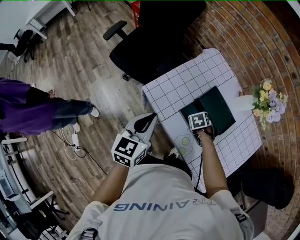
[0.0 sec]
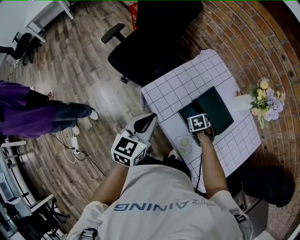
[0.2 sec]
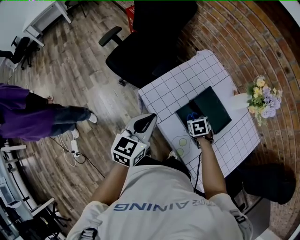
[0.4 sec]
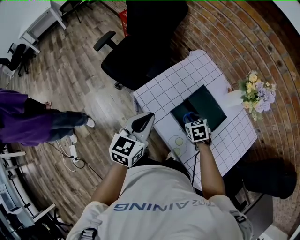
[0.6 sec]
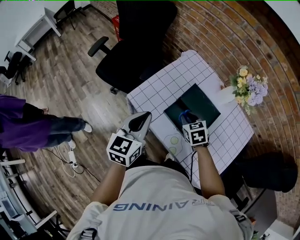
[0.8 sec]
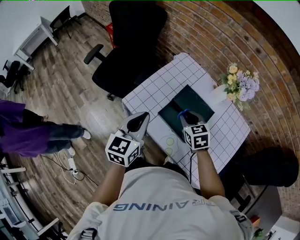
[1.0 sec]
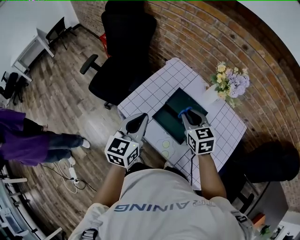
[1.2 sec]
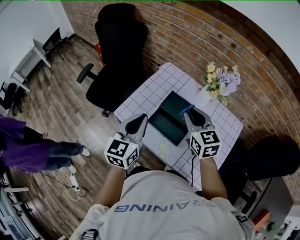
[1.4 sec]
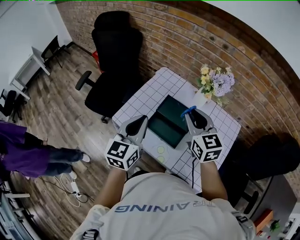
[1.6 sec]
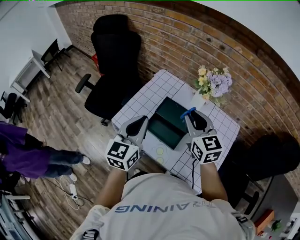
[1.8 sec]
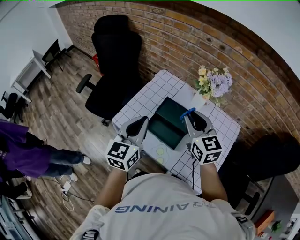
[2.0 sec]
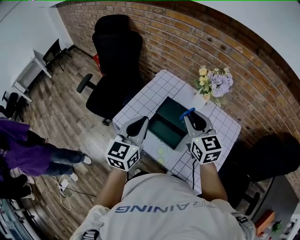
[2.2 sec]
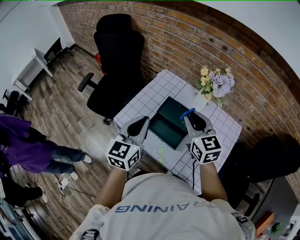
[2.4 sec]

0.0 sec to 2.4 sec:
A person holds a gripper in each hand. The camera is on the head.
0.0 sec to 1.2 sec: The left gripper moves about 10 cm, while the right gripper goes about 25 cm upward, and angles its fingers upward, by some 50 degrees.
1.2 sec to 2.4 sec: The left gripper moves to the right, approximately 5 cm. The right gripper travels upward and to the right by roughly 10 cm.

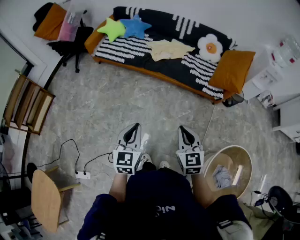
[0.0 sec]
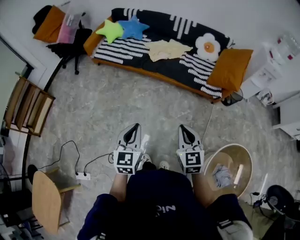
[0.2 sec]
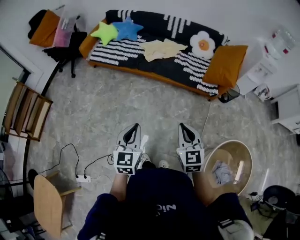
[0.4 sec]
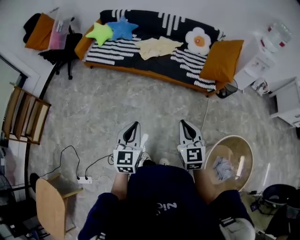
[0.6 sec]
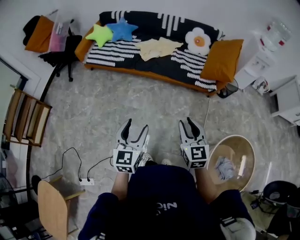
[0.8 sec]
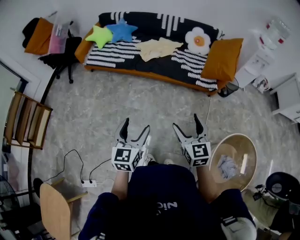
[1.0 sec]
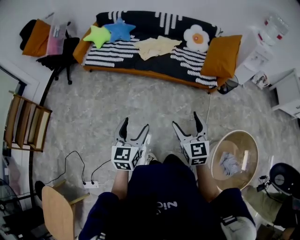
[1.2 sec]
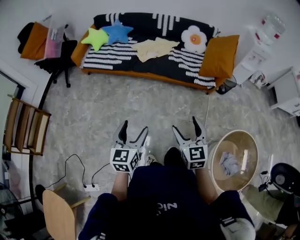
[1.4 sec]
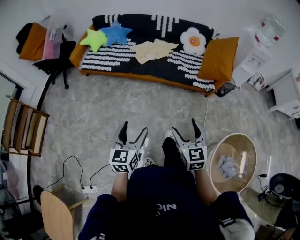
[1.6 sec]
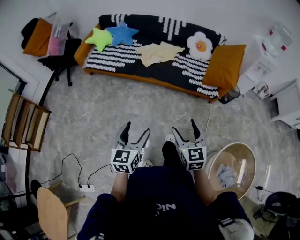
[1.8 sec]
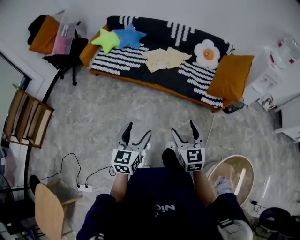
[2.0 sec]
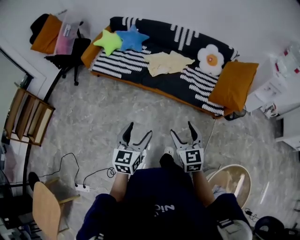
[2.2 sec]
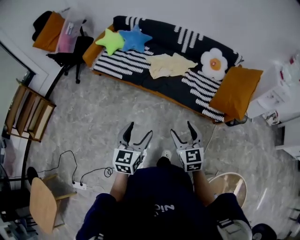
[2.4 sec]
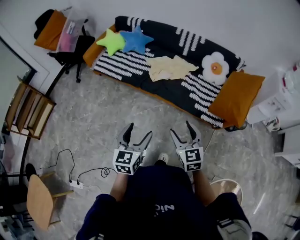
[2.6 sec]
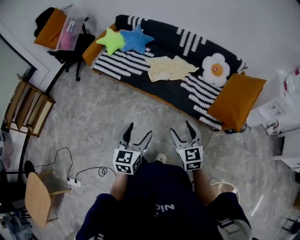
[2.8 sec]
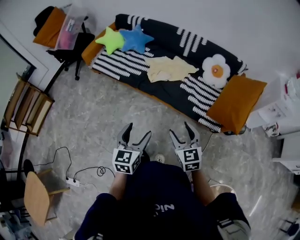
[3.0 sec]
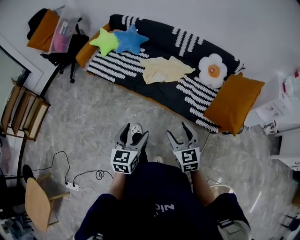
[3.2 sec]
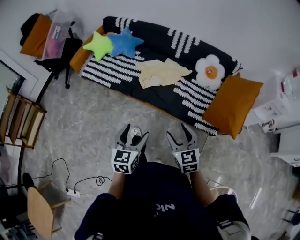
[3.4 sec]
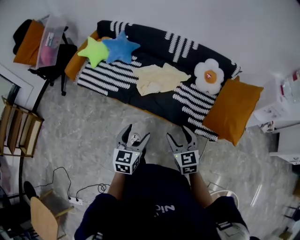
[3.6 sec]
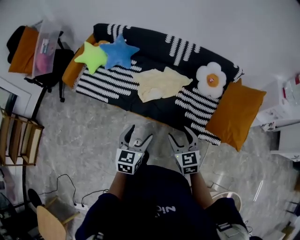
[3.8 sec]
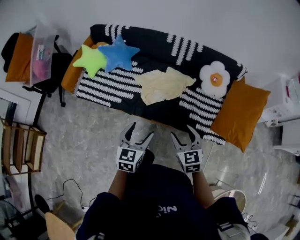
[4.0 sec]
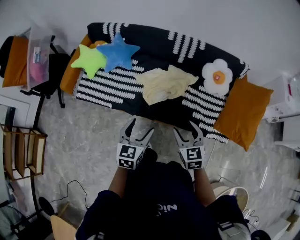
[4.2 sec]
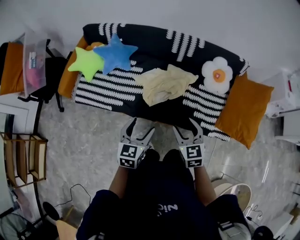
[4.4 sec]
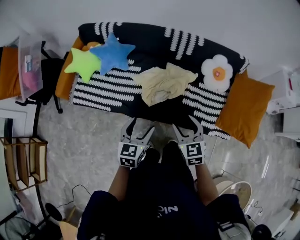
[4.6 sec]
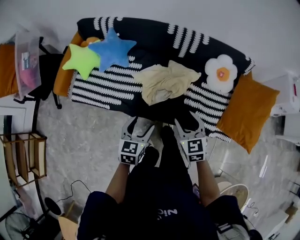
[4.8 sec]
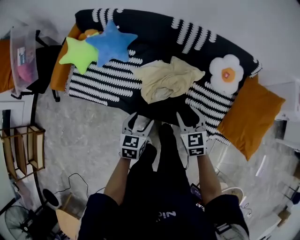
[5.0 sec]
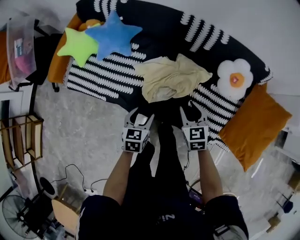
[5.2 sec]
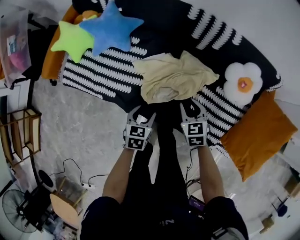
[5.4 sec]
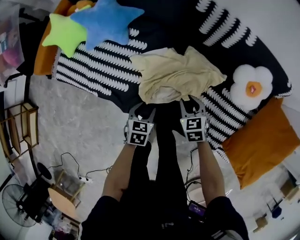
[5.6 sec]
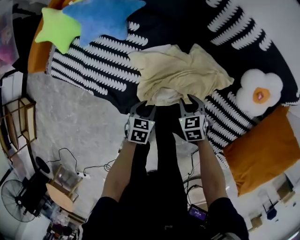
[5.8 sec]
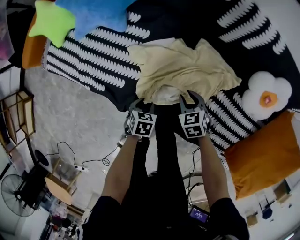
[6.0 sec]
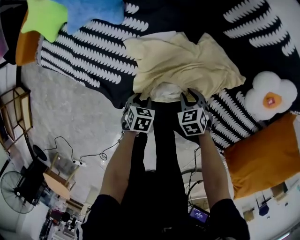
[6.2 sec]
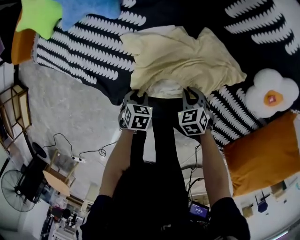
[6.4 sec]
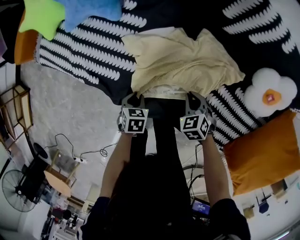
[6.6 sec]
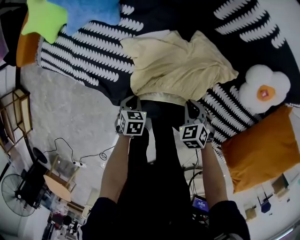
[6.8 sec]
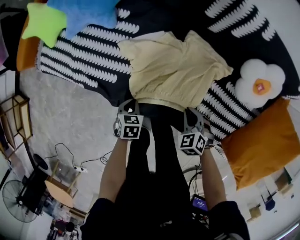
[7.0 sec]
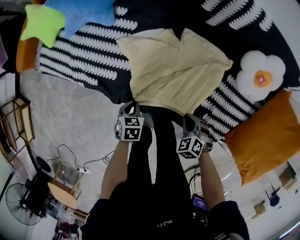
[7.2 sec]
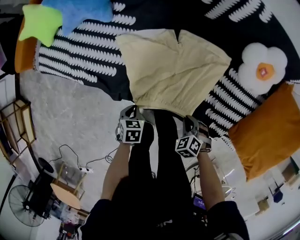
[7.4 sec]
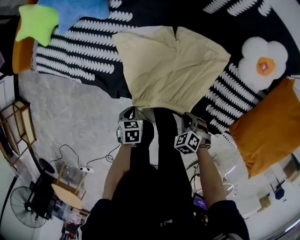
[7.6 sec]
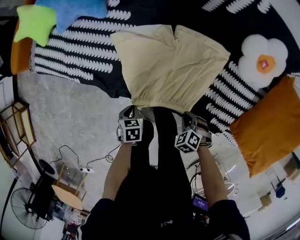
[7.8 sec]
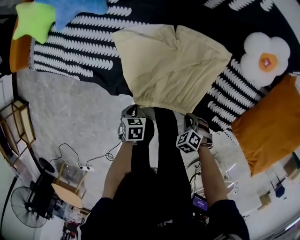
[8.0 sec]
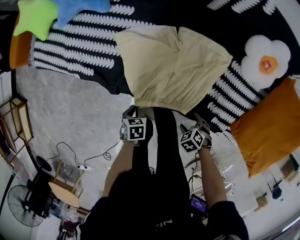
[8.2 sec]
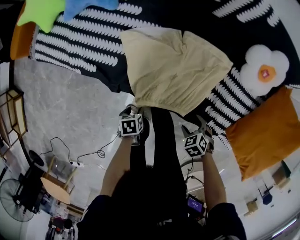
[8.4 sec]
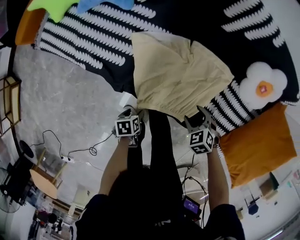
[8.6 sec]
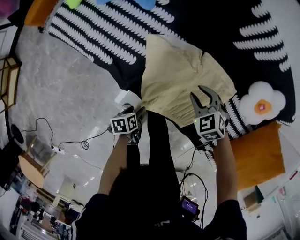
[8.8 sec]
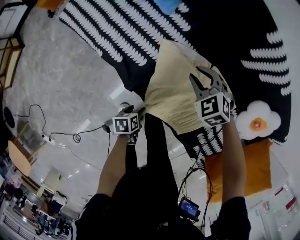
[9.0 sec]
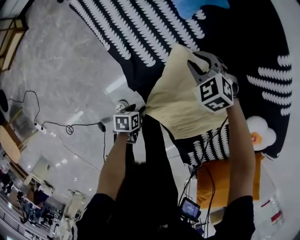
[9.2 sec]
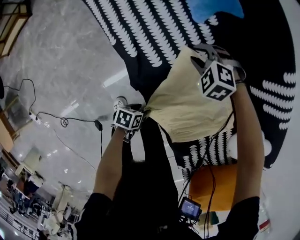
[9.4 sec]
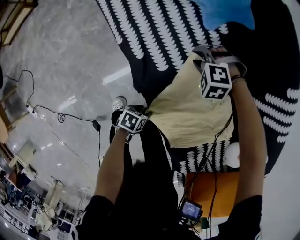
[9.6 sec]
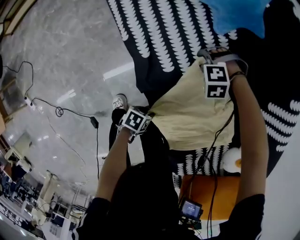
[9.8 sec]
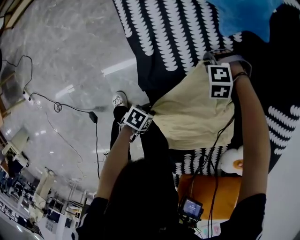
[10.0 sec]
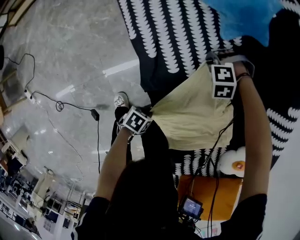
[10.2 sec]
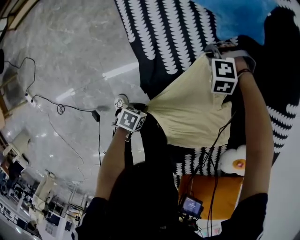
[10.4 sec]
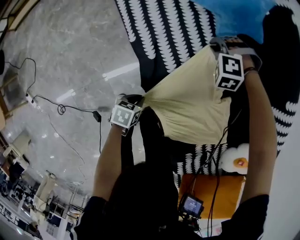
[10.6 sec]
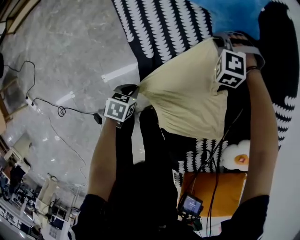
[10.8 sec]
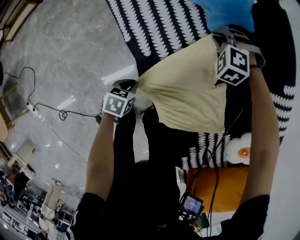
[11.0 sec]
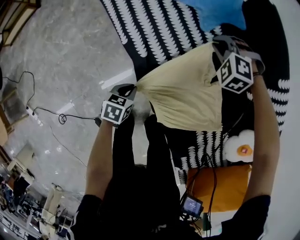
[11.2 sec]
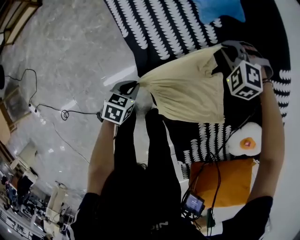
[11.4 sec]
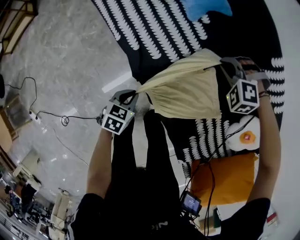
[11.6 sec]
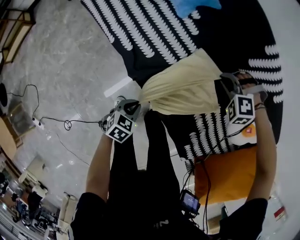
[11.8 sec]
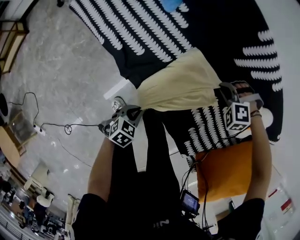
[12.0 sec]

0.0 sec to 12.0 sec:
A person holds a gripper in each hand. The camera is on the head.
0.0 sec to 1.6 sec: The right gripper opens its fingers, while the left gripper opens.
1.6 sec to 3.0 sec: The left gripper moves forward and to the right, approximately 25 cm, while the right gripper goes some 30 cm forward, and changes its angle by some 20 degrees.
3.0 sec to 4.4 sec: The two grippers go about 35 cm forward.
4.4 sec to 6.0 sec: The grippers both shift downward and forward by about 50 cm. The left gripper points its fingers approximately 40 degrees further downward, and closes. The right gripper changes its angle by roughly 40 degrees, and closes up.
6.0 sec to 7.6 sec: The right gripper goes up and down, approximately 10 cm each way, reversing 2 times, and rotates some 20 degrees, while the left gripper changes place by approximately 15 cm, and closes.
7.6 sec to 9.0 sec: The right gripper changes place by about 35 cm, swivels roughly 40 degrees, and opens, then closes again, while the left gripper rotates around the line of its fingers by some 40 degrees, counterclockwise from behind, and opens up.
9.0 sec to 10.4 sec: The right gripper changes place by some 20 cm, and rotates around the line of its fingers by some 70 degrees, counterclockwise from behind. Meanwhile the left gripper closes its fingers.
10.4 sec to 12.0 sec: The right gripper changes place by about 35 cm, and changes its angle by approximately 20 degrees; the left gripper travels upward by roughly 15 cm, and rotates around the line of its fingers by roughly 50 degrees, clockwise from behind.

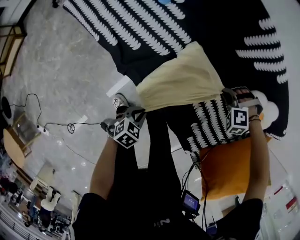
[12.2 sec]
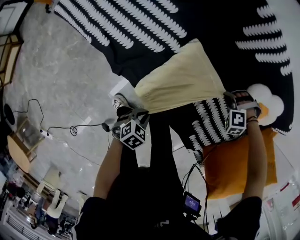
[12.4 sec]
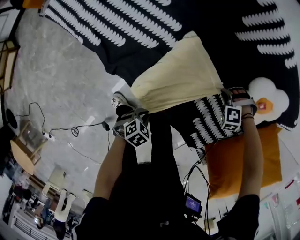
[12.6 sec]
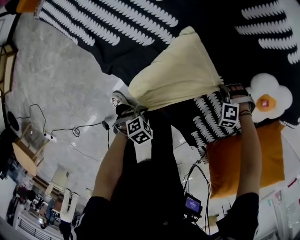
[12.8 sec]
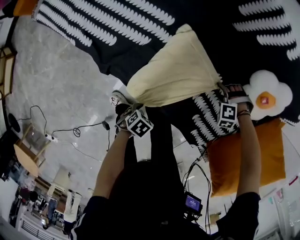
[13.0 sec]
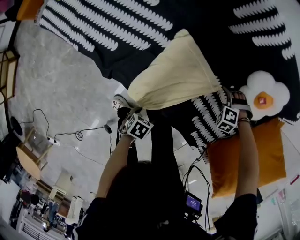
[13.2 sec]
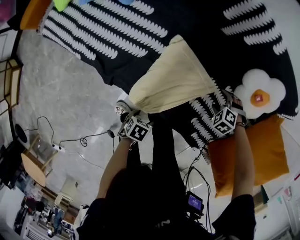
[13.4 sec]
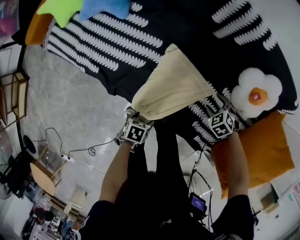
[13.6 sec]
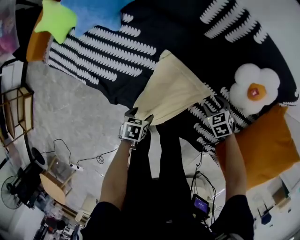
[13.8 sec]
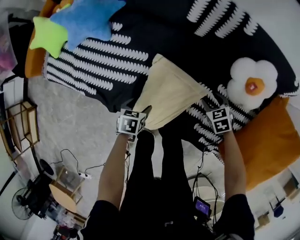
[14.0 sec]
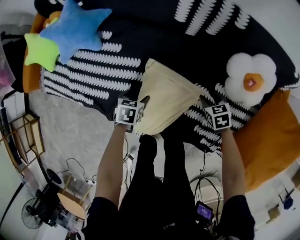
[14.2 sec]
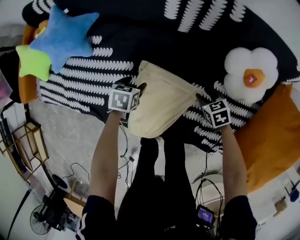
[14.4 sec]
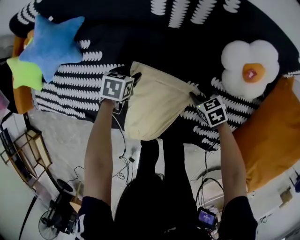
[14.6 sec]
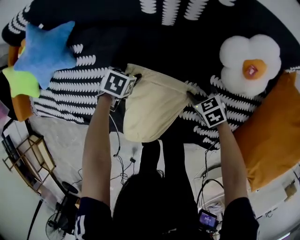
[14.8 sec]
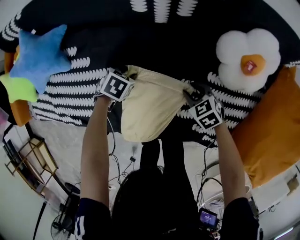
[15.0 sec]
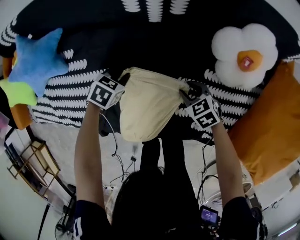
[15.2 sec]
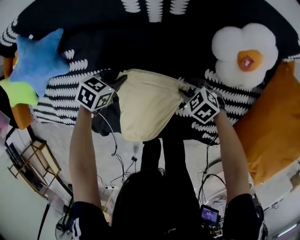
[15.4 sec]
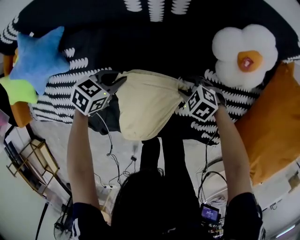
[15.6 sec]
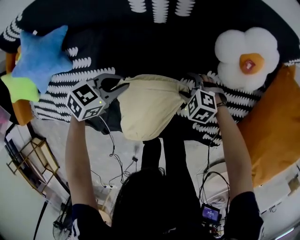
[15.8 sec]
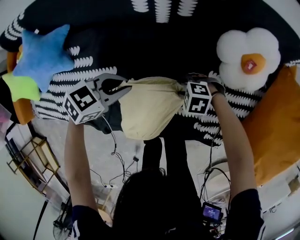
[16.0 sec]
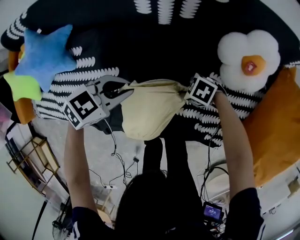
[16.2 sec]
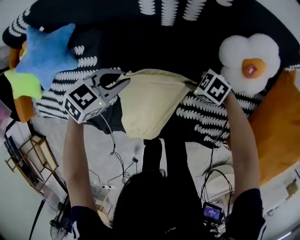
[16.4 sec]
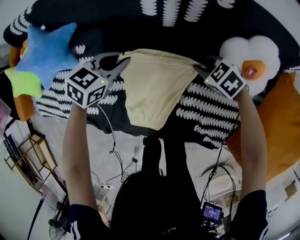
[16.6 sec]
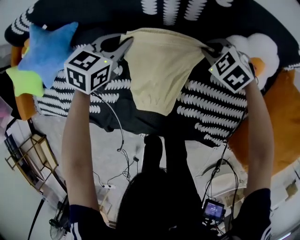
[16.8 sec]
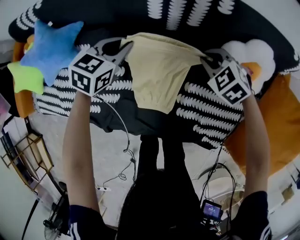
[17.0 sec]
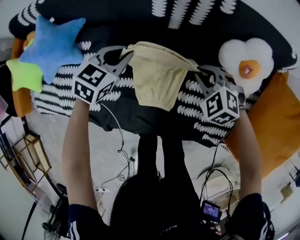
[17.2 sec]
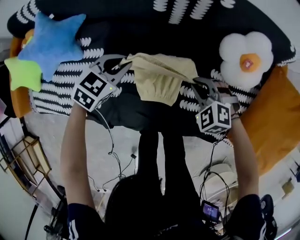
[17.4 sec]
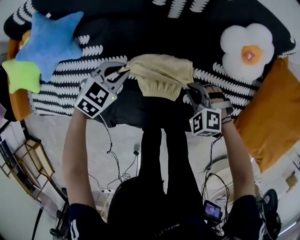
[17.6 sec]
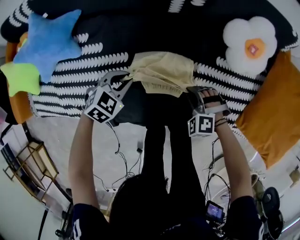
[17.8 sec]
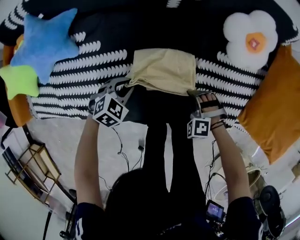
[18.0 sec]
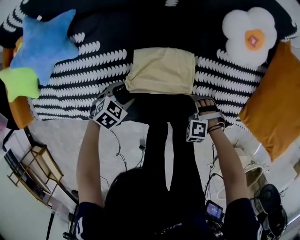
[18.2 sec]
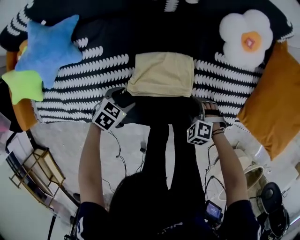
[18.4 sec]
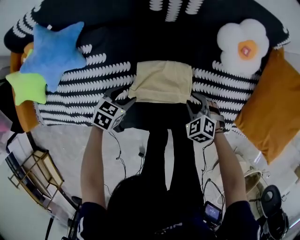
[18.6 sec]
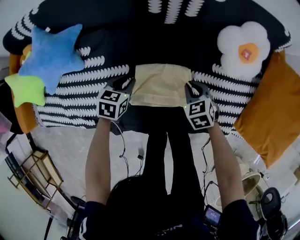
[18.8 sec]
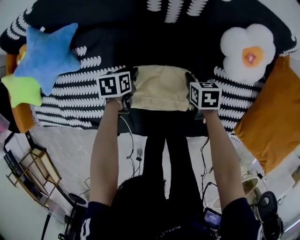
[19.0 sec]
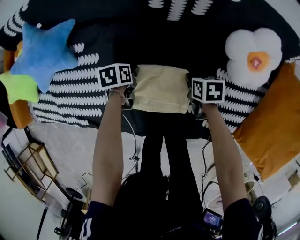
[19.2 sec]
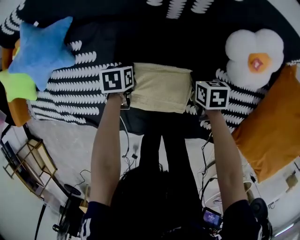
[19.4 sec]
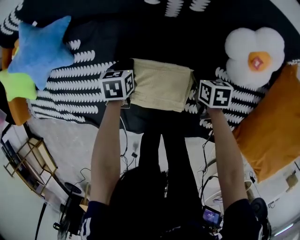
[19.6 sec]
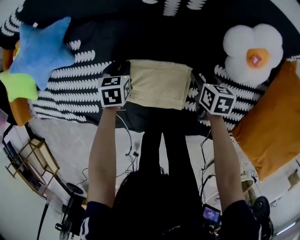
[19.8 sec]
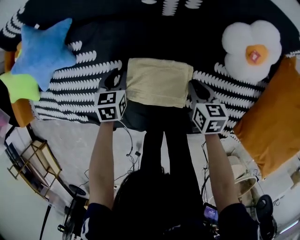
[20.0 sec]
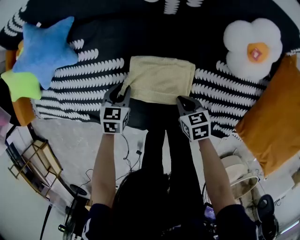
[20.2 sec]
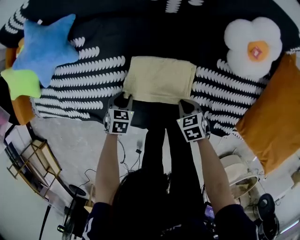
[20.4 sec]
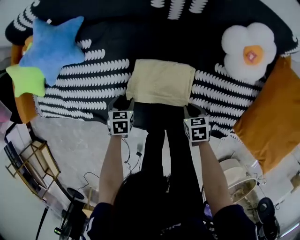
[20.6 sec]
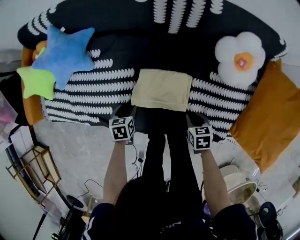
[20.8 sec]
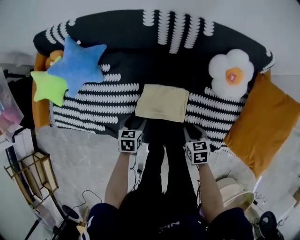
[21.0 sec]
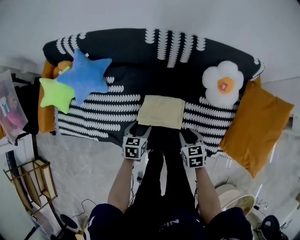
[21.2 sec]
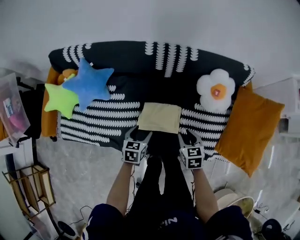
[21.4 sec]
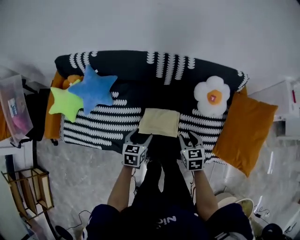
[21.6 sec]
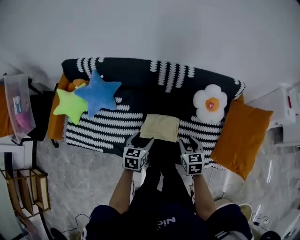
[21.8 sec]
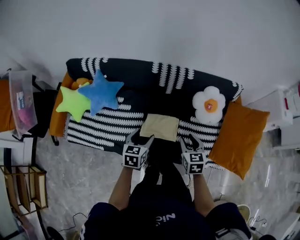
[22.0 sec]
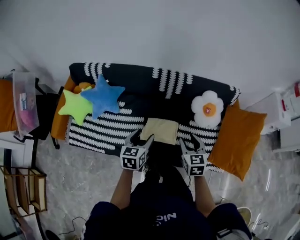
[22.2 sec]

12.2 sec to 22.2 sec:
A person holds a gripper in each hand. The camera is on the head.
12.2 sec to 13.6 sec: The left gripper swivels roughly 20 degrees, and opens. The right gripper changes place by roughly 15 cm, rotates around the line of its fingers by approximately 70 degrees, clockwise from behind, and opens up.
13.6 sec to 15.0 sec: The right gripper ends up about 5 cm from where it was, changes its angle by approximately 40 degrees, and closes up, while the left gripper moves roughly 35 cm, twists roughly 40 degrees clockwise, seen from behind, and closes up.
15.0 sec to 16.4 sec: The right gripper turns by roughly 30 degrees, and opens, then closes again, while the left gripper shifts approximately 15 cm upward, turns by about 30 degrees, and closes its fingers.
16.4 sec to 18.0 sec: The right gripper goes upward and returns, some 10 cm each way, and changes its angle by some 60 degrees. Meanwhile the left gripper changes place by some 15 cm, and swivels about 20 degrees.
18.0 sec to 19.4 sec: The left gripper changes place by about 15 cm, twists about 60 degrees counterclockwise, seen from behind, and opens, then closes again; the right gripper reaches some 5 cm upward, then returns, rotates around the line of its fingers by approximately 90 degrees, clockwise from behind, and opens and closes again.
19.4 sec to 20.8 sec: The right gripper shifts some 15 cm backward. Meanwhile the left gripper goes approximately 20 cm backward, to the left and upward, and opens.
20.8 sec to 22.2 sec: The two grippers go approximately 40 cm upward. The left gripper angles its fingers upward, by some 30 degrees. The right gripper tips its fingers upward by approximately 30 degrees.
